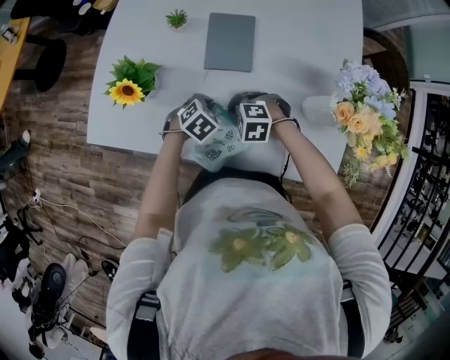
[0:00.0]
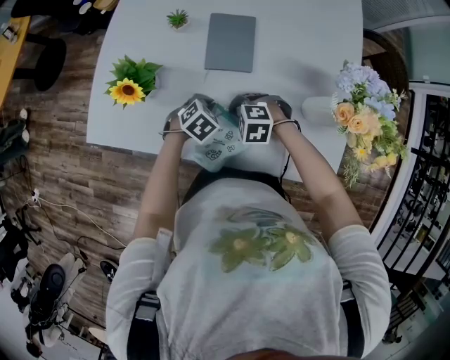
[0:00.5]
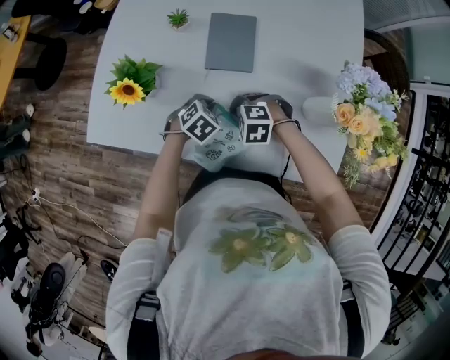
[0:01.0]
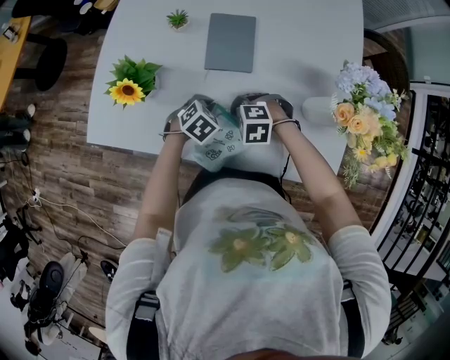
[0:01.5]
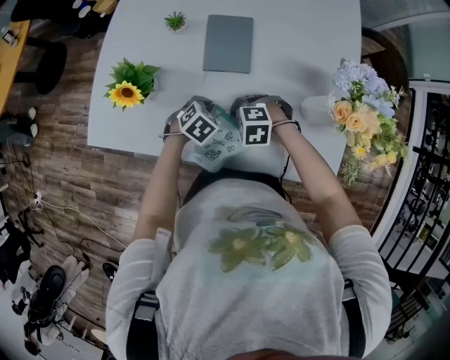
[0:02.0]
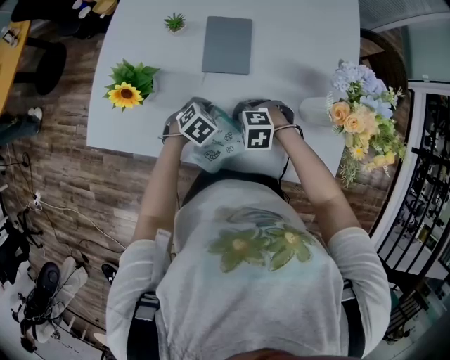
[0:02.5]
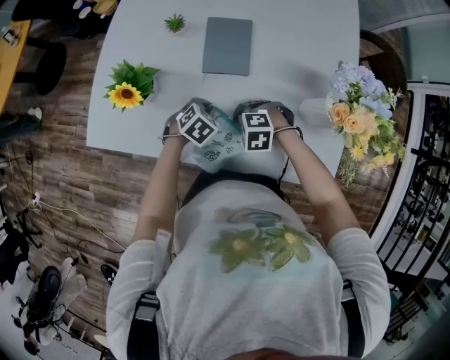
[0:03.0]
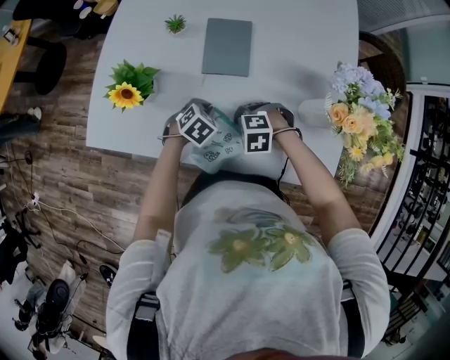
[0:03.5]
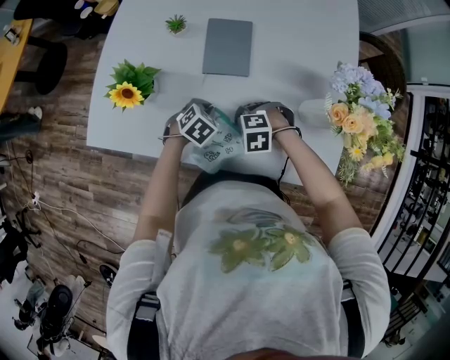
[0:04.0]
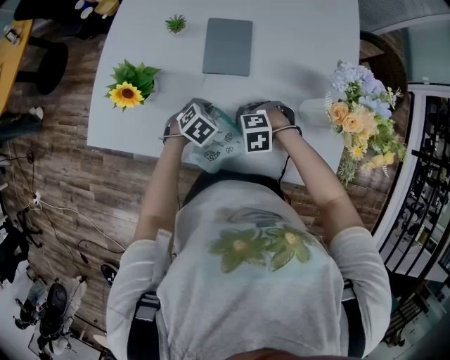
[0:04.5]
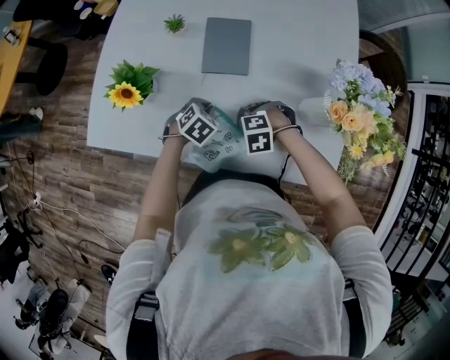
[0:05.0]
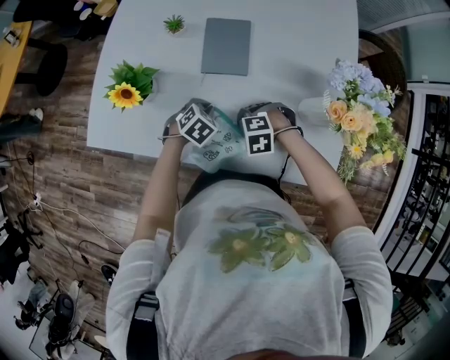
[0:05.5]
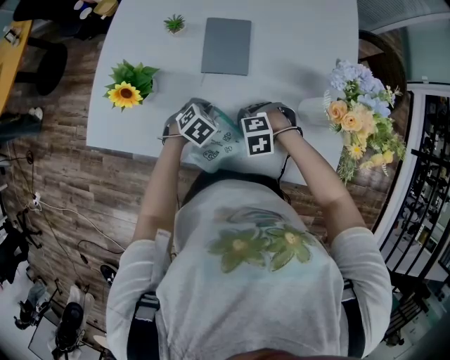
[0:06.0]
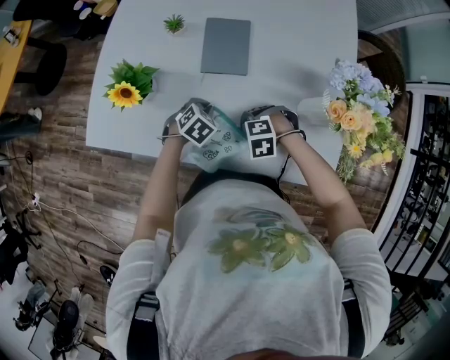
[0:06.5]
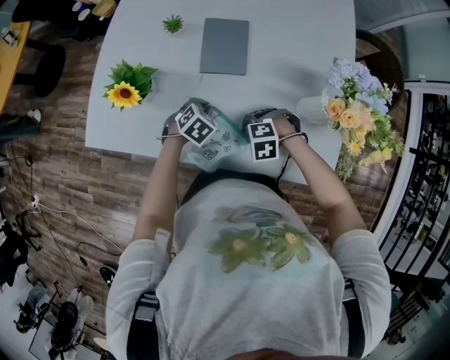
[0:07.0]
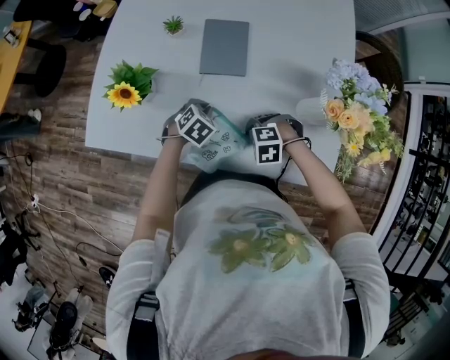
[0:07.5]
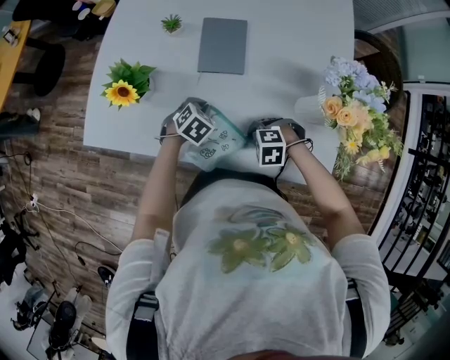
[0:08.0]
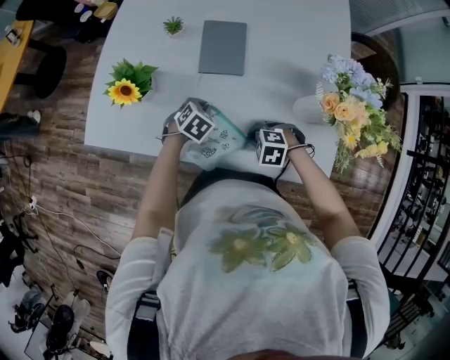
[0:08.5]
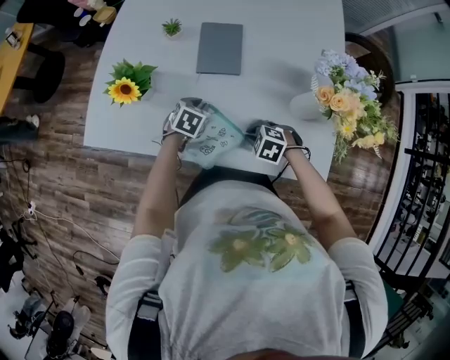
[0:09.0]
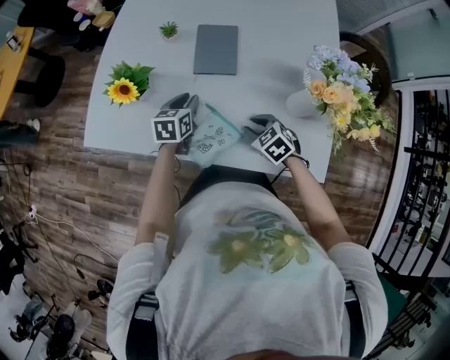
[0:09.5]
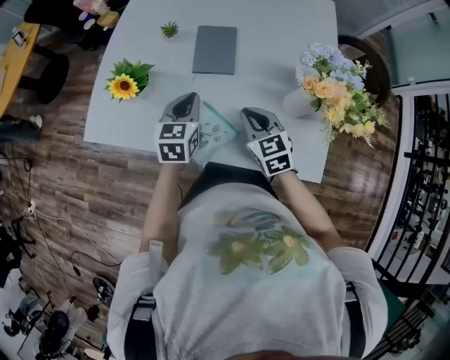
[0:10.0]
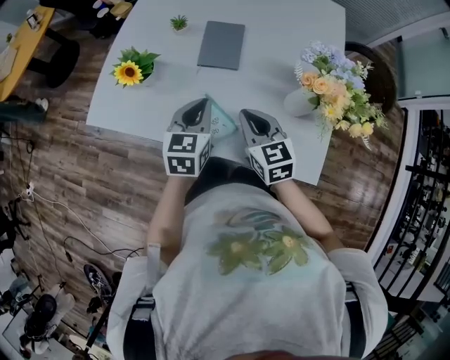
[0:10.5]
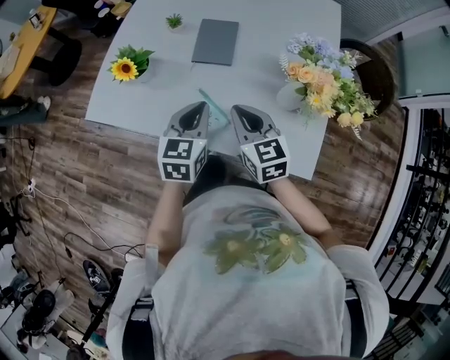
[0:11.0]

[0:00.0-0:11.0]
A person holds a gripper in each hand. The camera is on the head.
0:00.0 to 0:05.5: The grippers move only a little.
0:05.5 to 0:07.5: The grippers stay close to where they were, moving slightly.
0:07.5 to 0:09.0: The right gripper turns by approximately 20 degrees.
0:09.0 to 0:11.0: The right gripper moves upward, about 20 cm, points its fingers approximately 50 degrees further upward, and opens, then closes once more. Meanwhile the left gripper shifts some 25 cm upward and backward, and tilts its fingers roughly 30 degrees upward.

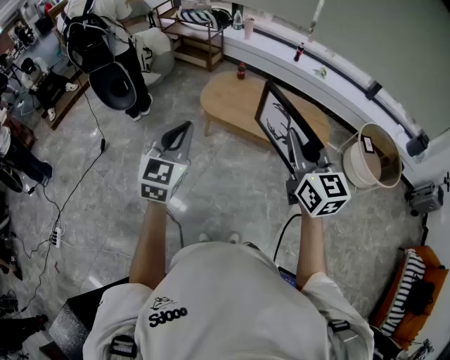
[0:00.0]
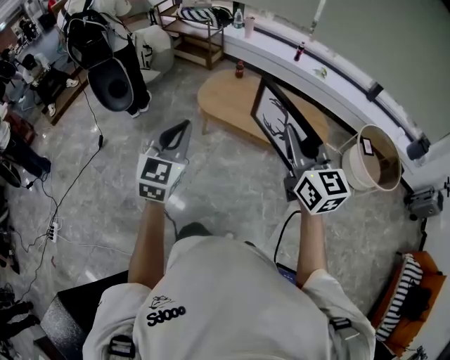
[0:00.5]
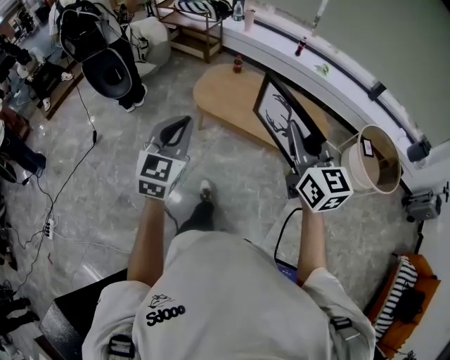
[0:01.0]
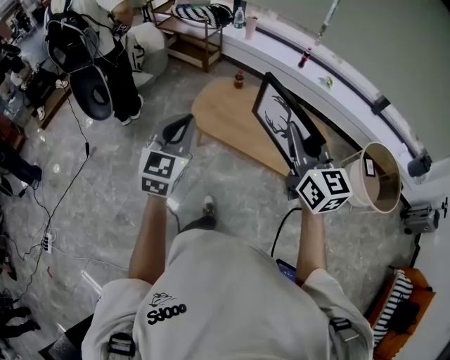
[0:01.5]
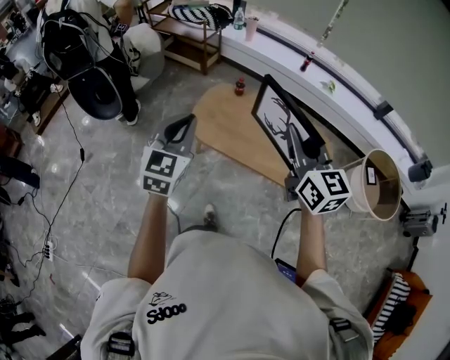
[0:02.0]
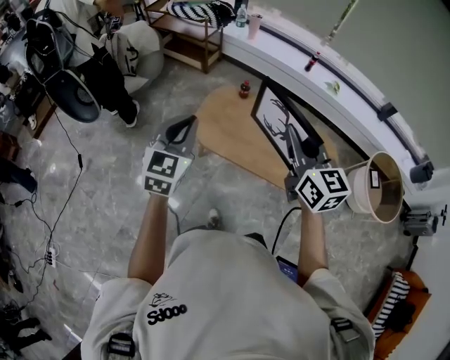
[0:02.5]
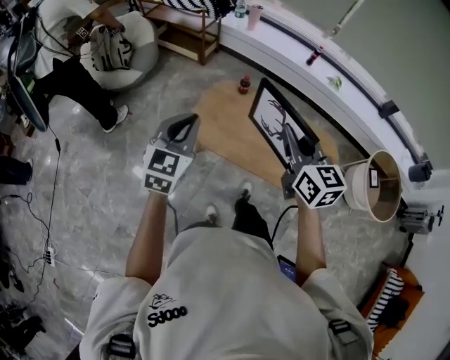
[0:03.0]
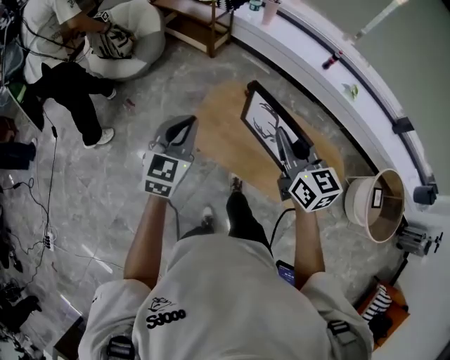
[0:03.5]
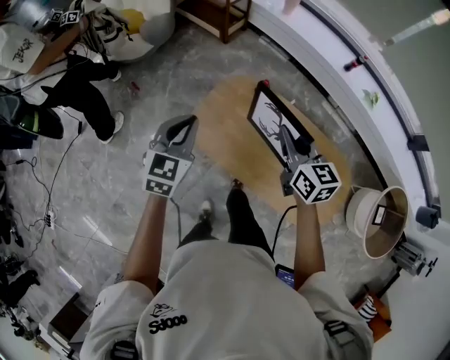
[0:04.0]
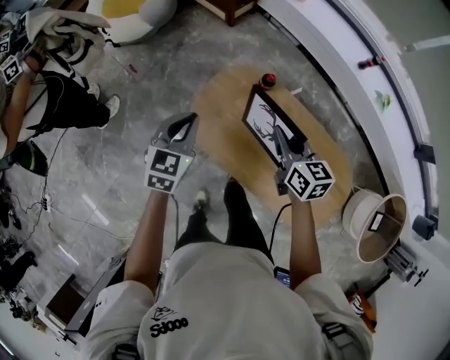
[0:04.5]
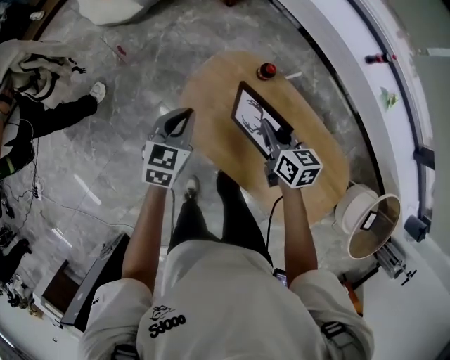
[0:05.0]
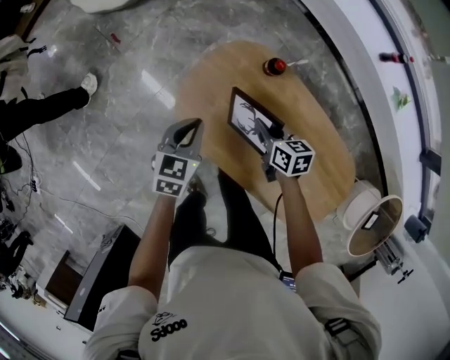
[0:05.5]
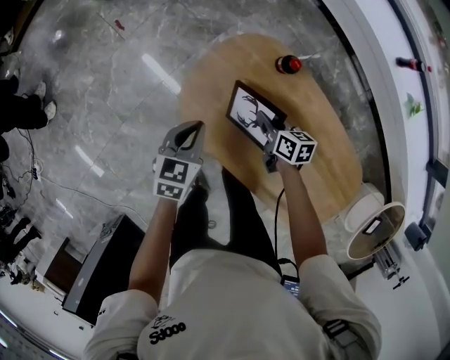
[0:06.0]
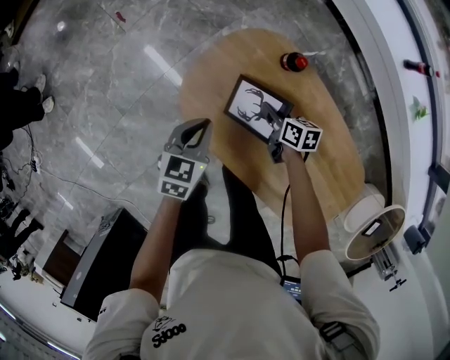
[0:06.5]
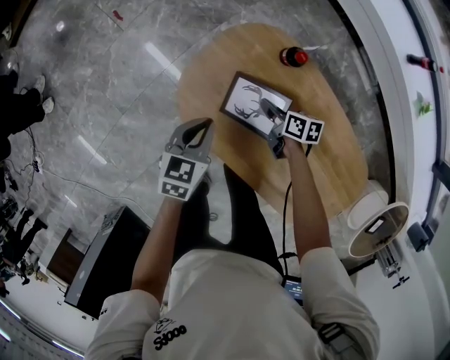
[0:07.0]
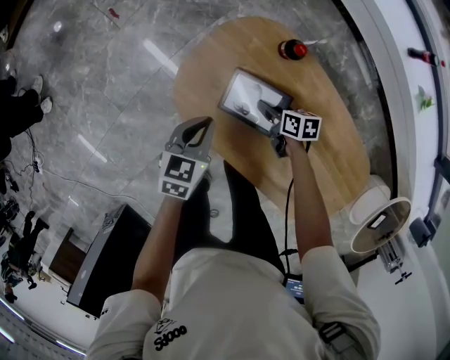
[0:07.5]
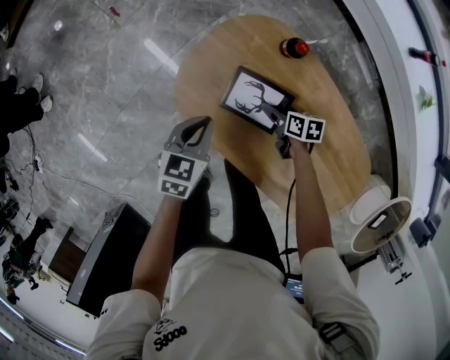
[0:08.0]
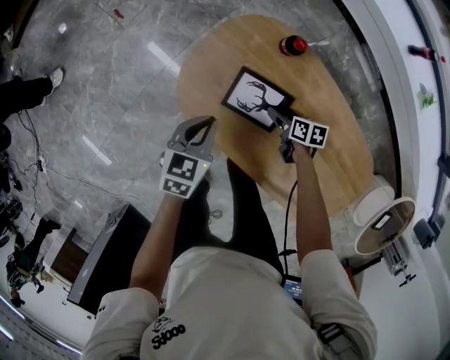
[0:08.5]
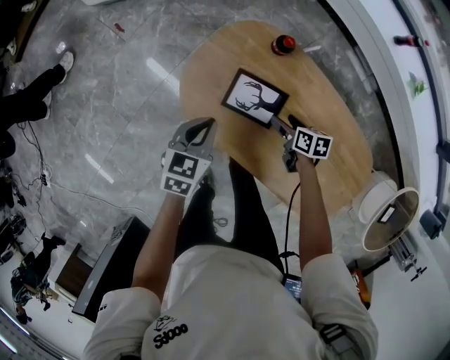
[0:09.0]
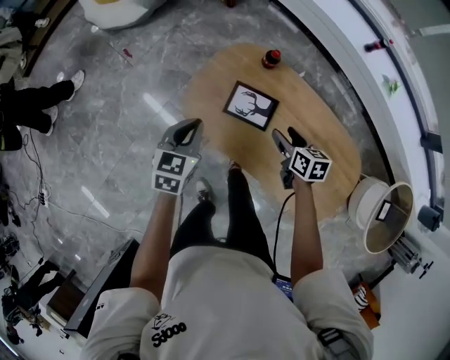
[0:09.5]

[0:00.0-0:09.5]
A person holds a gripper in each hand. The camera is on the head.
0:00.0 to 0:02.0: Both grippers travel together forward, approximately 30 cm.
0:02.0 to 0:04.0: Both grippers move forward and downward, some 35 cm. The right gripper turns by some 20 degrees.
0:04.0 to 0:05.5: The two grippers go about 30 cm downward. The right gripper changes its angle by about 30 degrees. The left gripper turns by roughly 20 degrees.
0:05.5 to 0:07.5: The right gripper shifts about 15 cm downward, and opens its fingers. The left gripper shifts some 5 cm downward.
0:07.5 to 0:09.5: The right gripper moves upward and backward, roughly 25 cm, and rotates some 20 degrees, while the left gripper travels upward and to the left by approximately 15 cm.

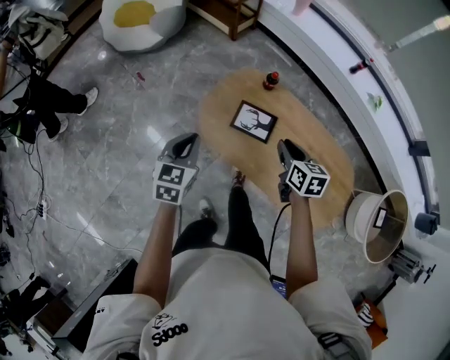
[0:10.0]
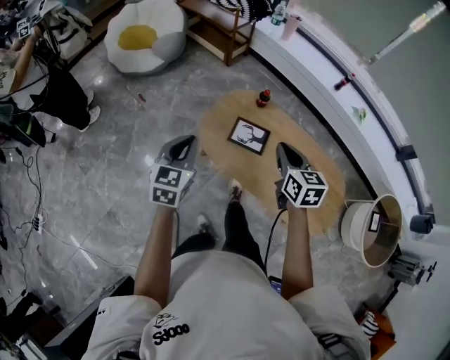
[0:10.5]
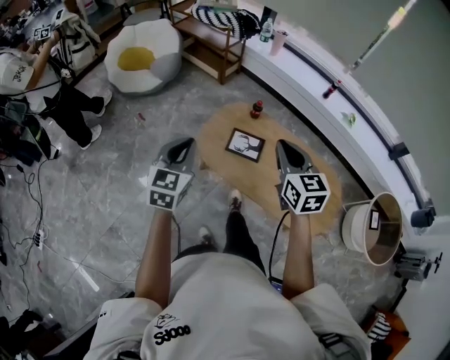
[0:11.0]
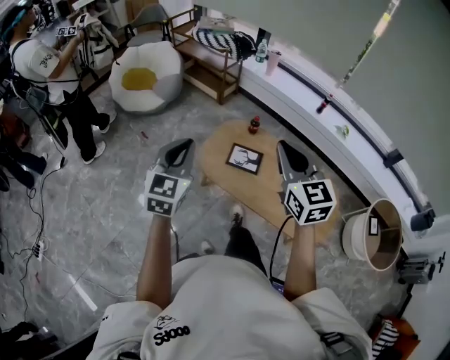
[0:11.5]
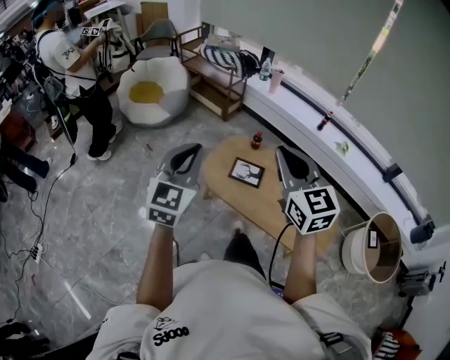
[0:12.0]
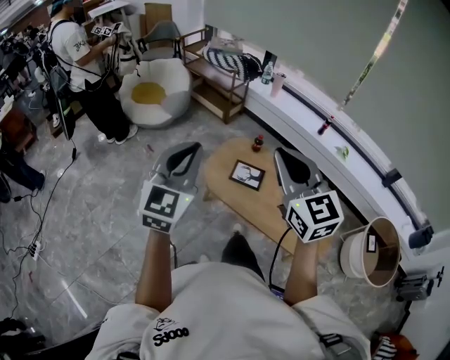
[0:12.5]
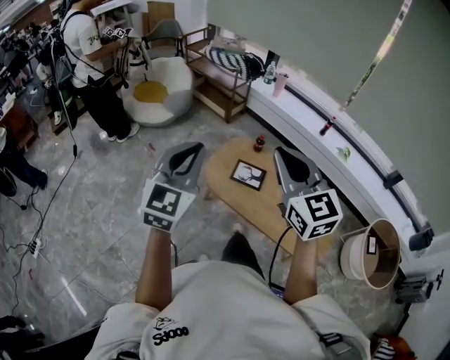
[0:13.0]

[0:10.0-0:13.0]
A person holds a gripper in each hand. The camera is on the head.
0:10.0 to 0:11.5: Both grippers travel together upward and backward, some 30 cm. The left gripper turns by approximately 30 degrees; the right gripper rotates approximately 40 degrees.
0:11.5 to 0:13.0: The right gripper heads upward and to the left, covering about 10 cm. Meanwhile the left gripper shifts roughly 10 cm upward and backward.

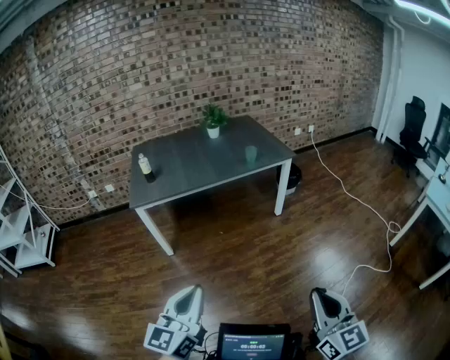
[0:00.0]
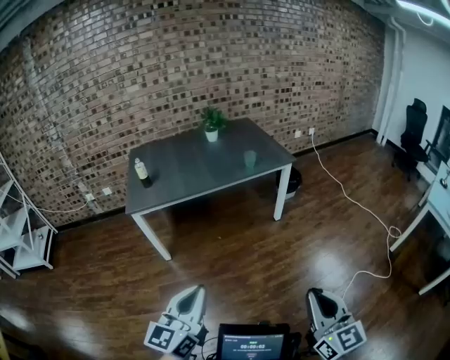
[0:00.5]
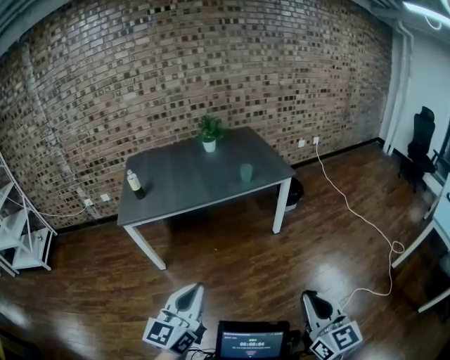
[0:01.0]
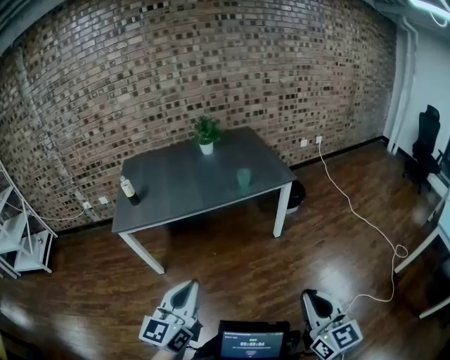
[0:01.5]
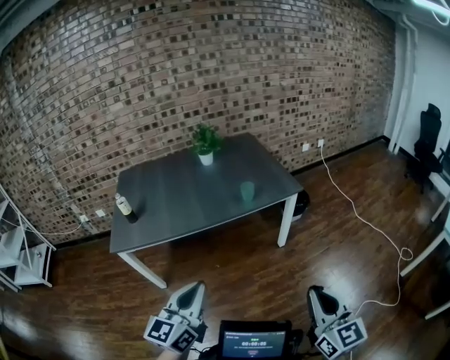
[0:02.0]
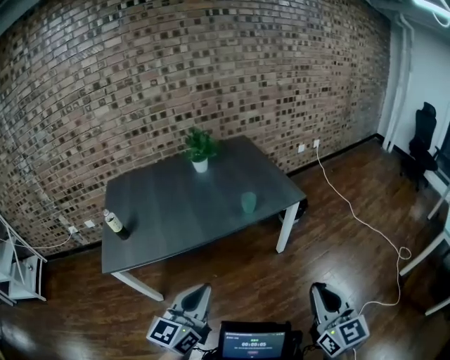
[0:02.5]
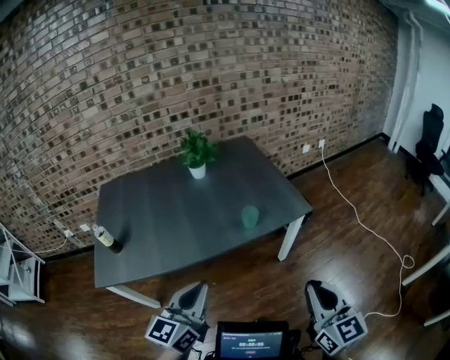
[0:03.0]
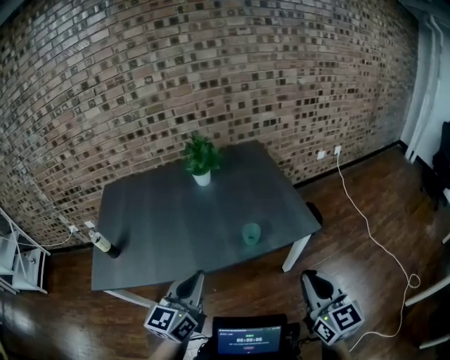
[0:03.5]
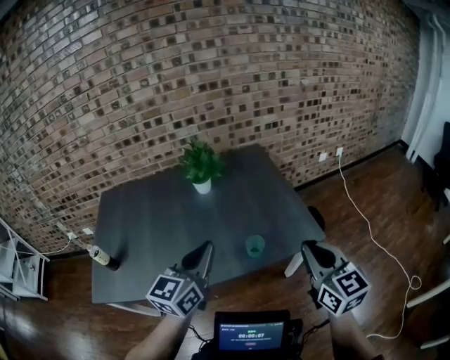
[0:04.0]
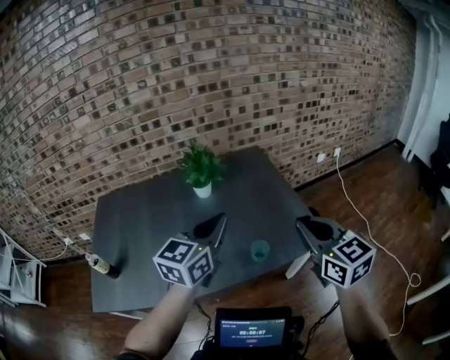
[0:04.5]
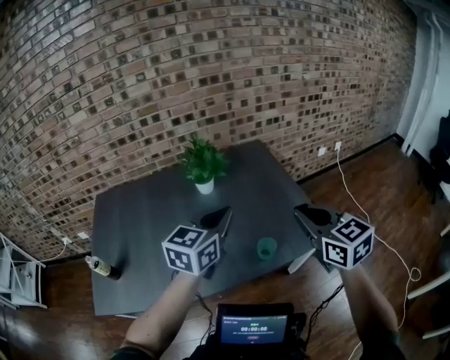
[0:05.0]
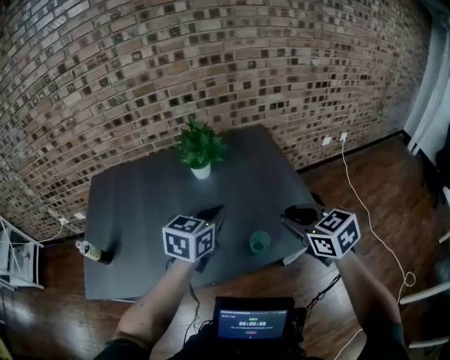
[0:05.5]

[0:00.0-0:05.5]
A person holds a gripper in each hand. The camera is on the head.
0:00.0 to 0:02.0: The grippers both shift forward by about 30 cm.
0:02.0 to 0:03.5: The two grippers go some 35 cm forward.
0:03.5 to 0:05.5: Both grippers move forward, about 25 cm. The right gripper changes its angle by about 30 degrees; the left gripper rotates some 20 degrees.
